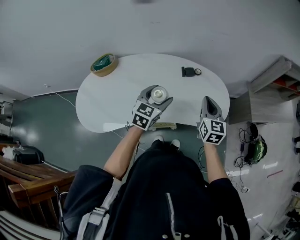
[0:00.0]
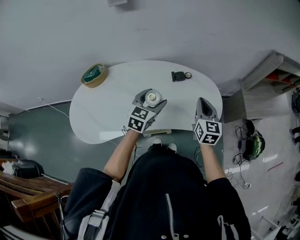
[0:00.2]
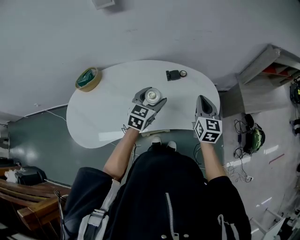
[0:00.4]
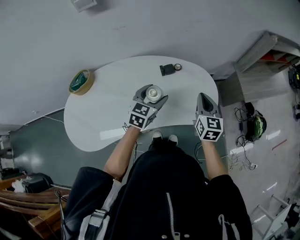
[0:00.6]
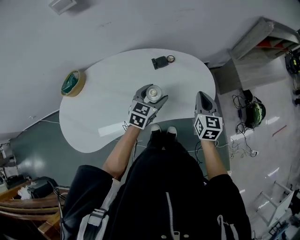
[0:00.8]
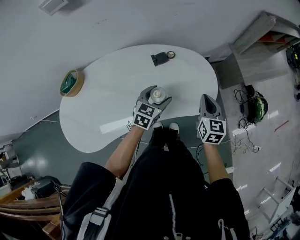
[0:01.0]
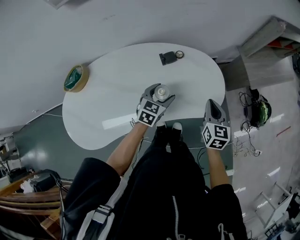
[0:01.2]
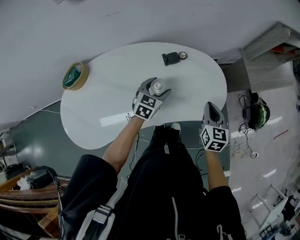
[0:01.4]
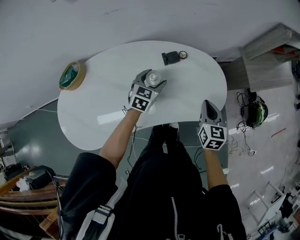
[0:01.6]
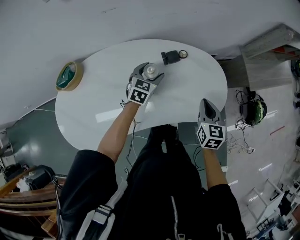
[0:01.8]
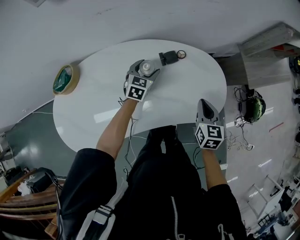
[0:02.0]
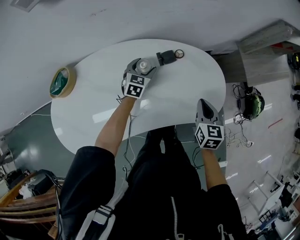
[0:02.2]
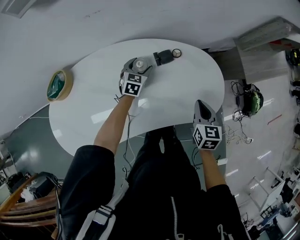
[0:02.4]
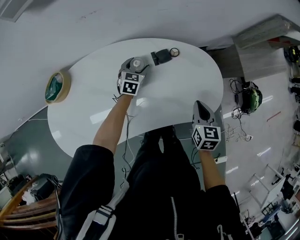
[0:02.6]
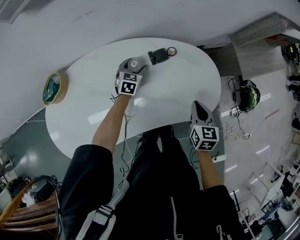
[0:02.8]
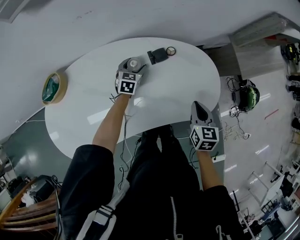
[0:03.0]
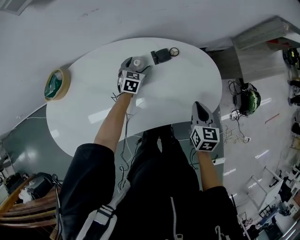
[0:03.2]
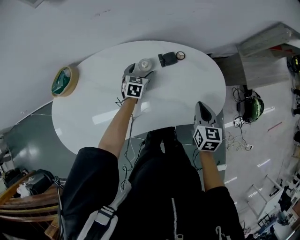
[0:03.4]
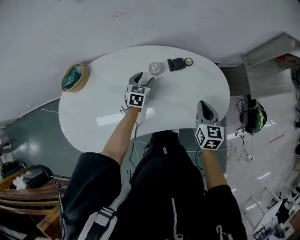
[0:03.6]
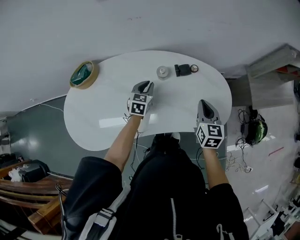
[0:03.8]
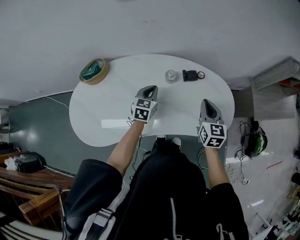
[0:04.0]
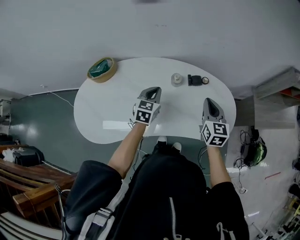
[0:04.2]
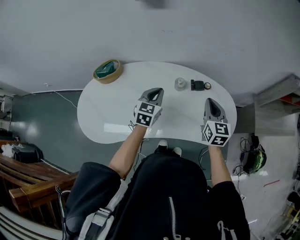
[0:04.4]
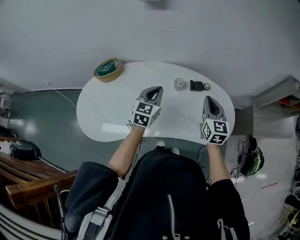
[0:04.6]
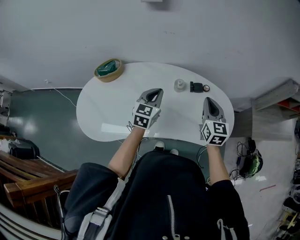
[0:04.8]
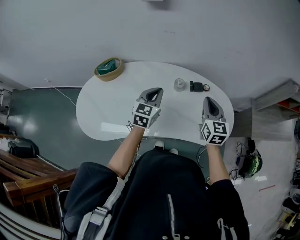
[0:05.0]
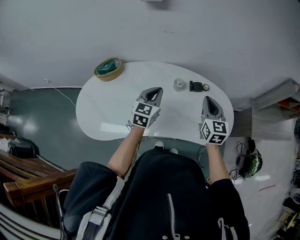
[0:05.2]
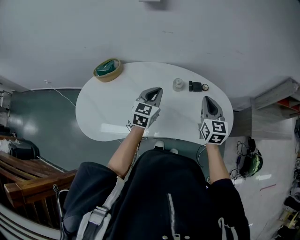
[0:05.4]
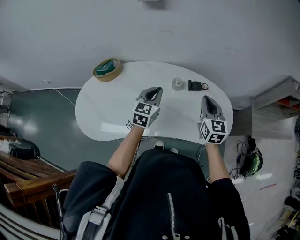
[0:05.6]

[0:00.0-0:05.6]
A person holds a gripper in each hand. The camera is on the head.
0:00.0 to 0:01.4: The left gripper heads downward and forward, covering about 20 cm. The right gripper goes some 10 cm downward and to the right.
0:01.4 to 0:02.8: The left gripper heads forward, downward and to the left, covering some 20 cm. Meanwhile the right gripper shifts by about 5 cm.
0:02.8 to 0:04.2: The left gripper travels upward and backward by about 25 cm, and closes its fingers. Meanwhile the right gripper moves upward and to the left, roughly 15 cm, and swivels approximately 30 degrees.
0:04.2 to 0:05.6: The left gripper moves upward, some 5 cm.

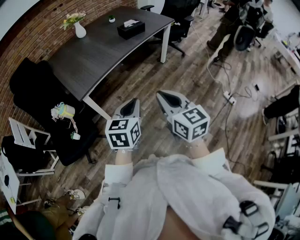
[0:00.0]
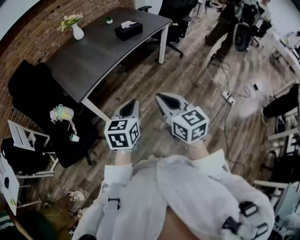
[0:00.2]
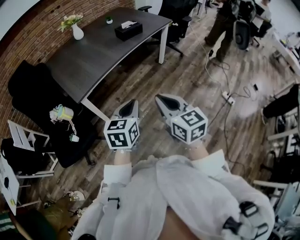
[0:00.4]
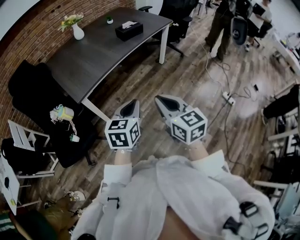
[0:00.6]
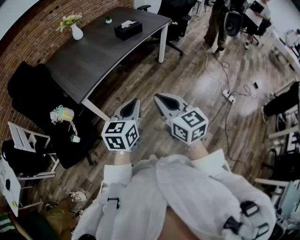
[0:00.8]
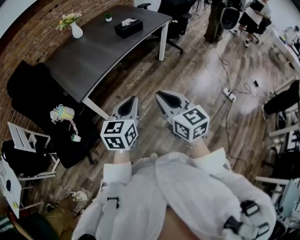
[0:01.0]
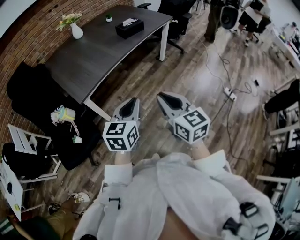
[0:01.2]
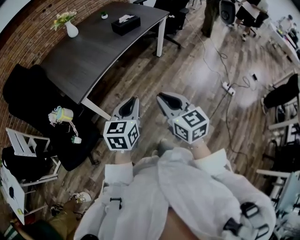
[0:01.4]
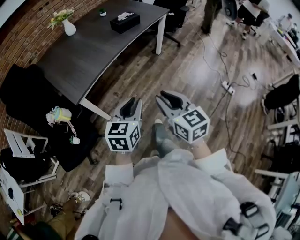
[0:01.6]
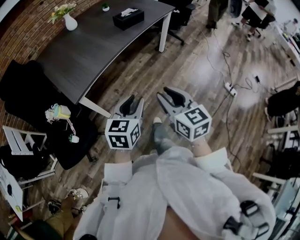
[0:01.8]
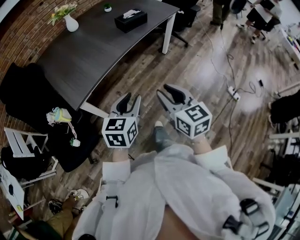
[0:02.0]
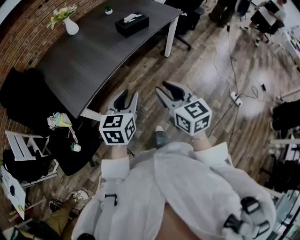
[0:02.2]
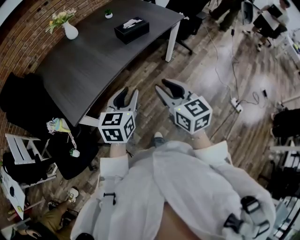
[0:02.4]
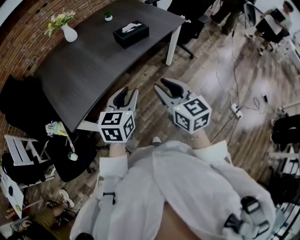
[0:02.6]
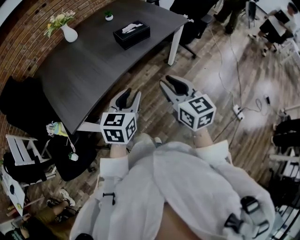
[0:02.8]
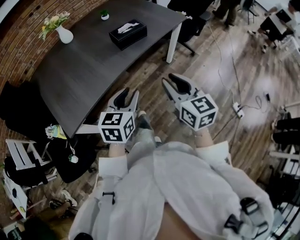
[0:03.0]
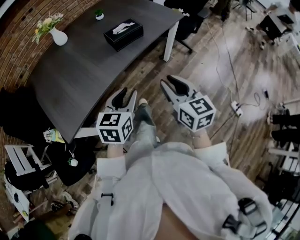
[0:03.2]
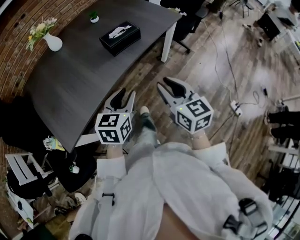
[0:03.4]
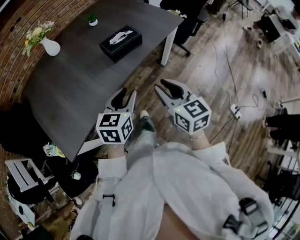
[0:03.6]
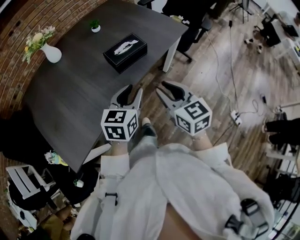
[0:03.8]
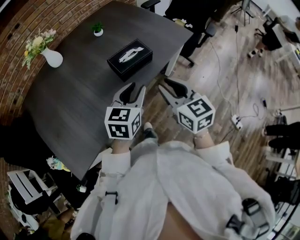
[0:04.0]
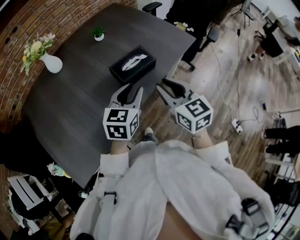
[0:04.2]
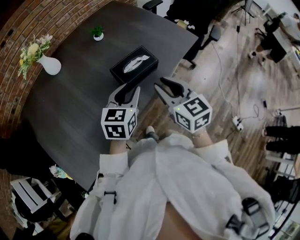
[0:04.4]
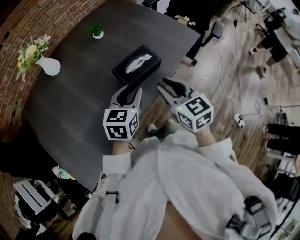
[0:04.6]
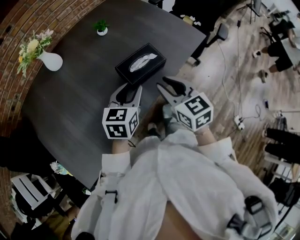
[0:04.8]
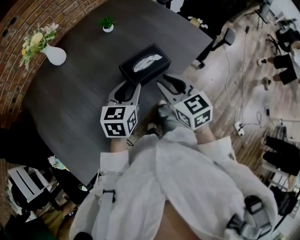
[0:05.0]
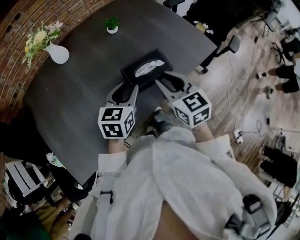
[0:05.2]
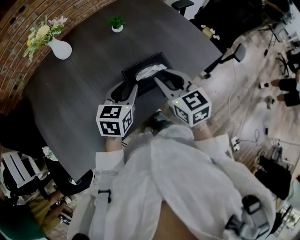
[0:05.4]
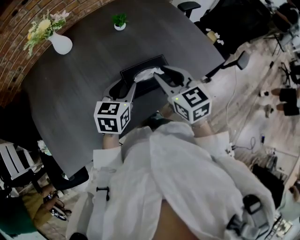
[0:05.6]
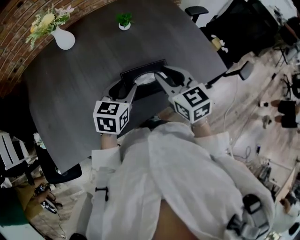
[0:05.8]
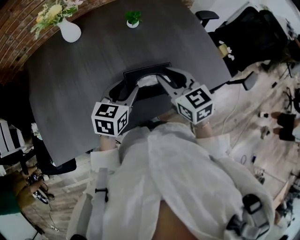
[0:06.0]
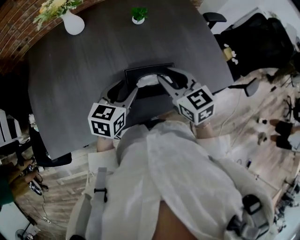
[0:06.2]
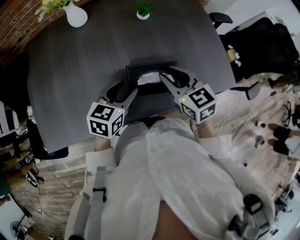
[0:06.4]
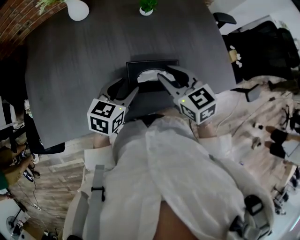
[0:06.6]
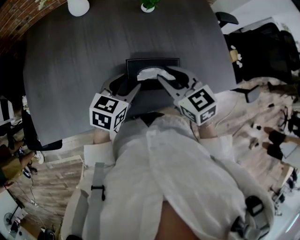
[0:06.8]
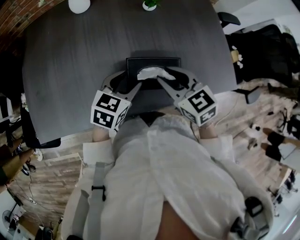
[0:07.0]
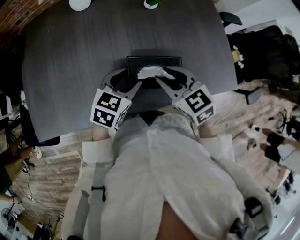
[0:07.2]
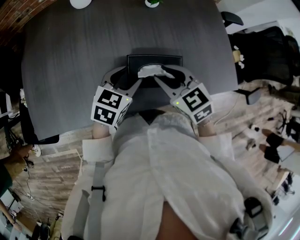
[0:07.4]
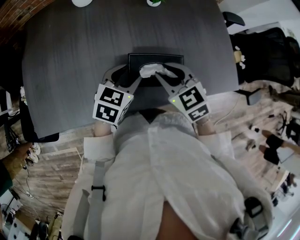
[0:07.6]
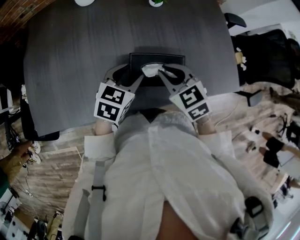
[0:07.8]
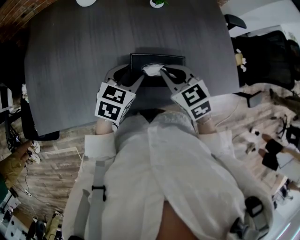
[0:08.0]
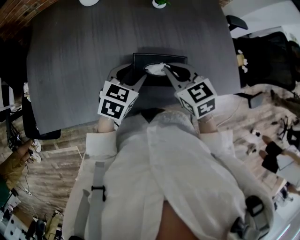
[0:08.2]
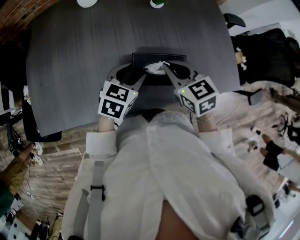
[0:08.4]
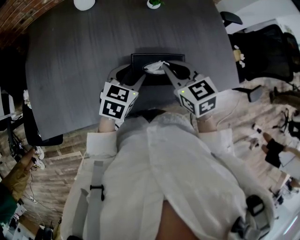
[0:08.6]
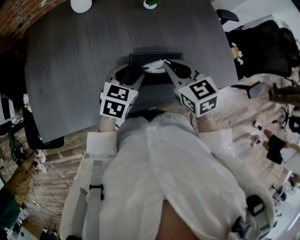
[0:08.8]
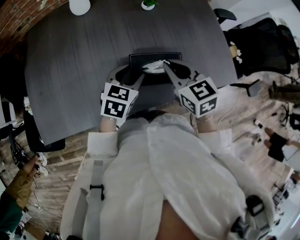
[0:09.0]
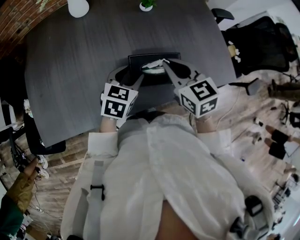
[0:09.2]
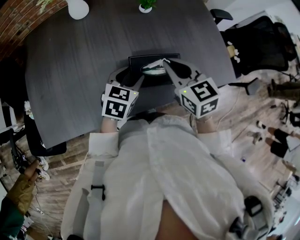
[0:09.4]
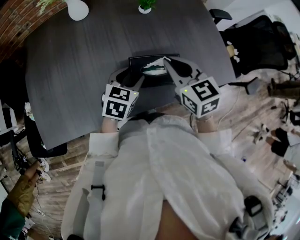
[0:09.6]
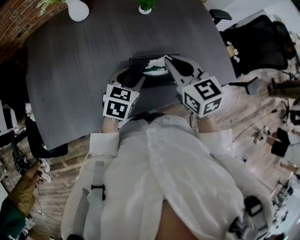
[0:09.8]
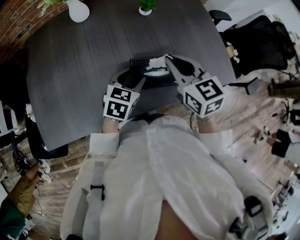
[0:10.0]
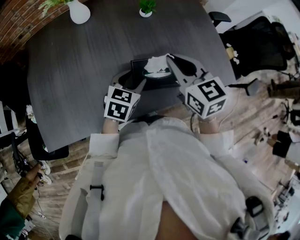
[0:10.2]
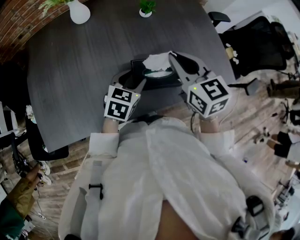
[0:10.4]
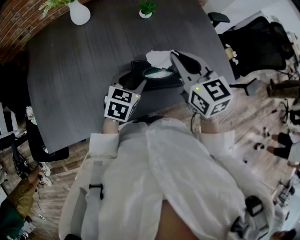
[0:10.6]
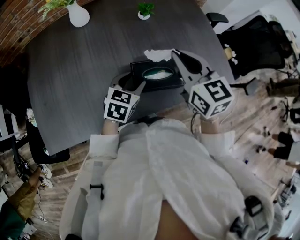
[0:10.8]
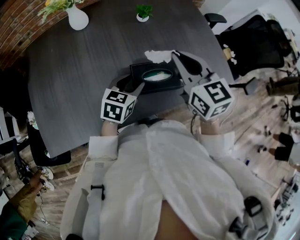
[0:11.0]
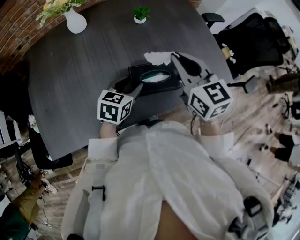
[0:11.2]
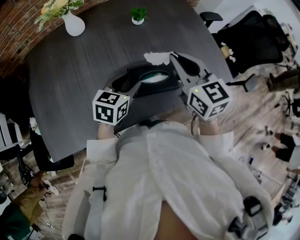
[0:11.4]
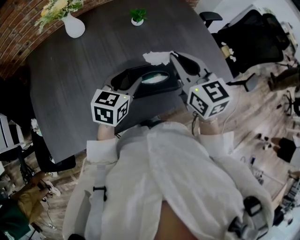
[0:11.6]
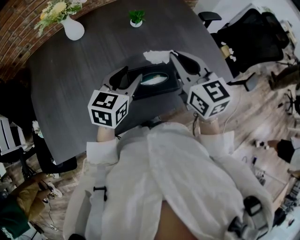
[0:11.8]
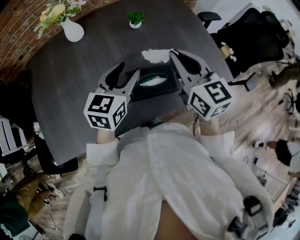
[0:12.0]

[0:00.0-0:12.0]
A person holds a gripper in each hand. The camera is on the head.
0:00.0 to 0:01.6: The right gripper shifts approximately 5 cm downward. The left gripper moves about 5 cm.
0:01.6 to 0:03.0: Both grippers travel together forward, roughly 35 cm.
0:03.0 to 0:04.4: The grippers both shift forward by approximately 35 cm.
0:04.4 to 0:06.0: The left gripper goes approximately 10 cm forward, and turns by some 20 degrees. Meanwhile the right gripper travels forward by about 20 cm, and changes its angle by roughly 30 degrees.
0:06.0 to 0:07.6: The right gripper moves downward, approximately 5 cm, and swivels about 20 degrees.
0:07.6 to 0:09.0: The right gripper closes.
0:09.0 to 0:10.4: The right gripper travels upward by roughly 10 cm.
0:10.4 to 0:12.0: The left gripper moves upward, some 15 cm, and turns by approximately 20 degrees, while the right gripper goes roughly 5 cm upward.

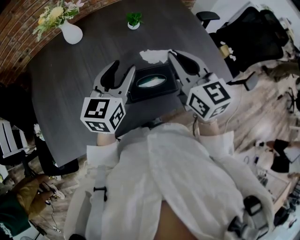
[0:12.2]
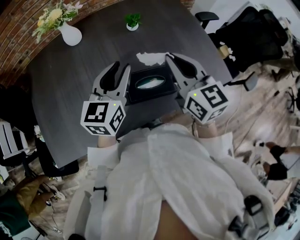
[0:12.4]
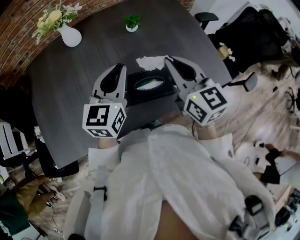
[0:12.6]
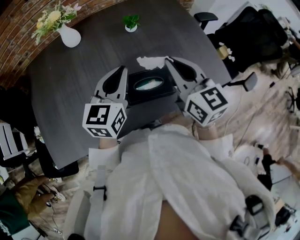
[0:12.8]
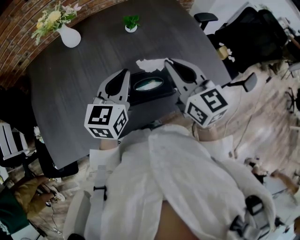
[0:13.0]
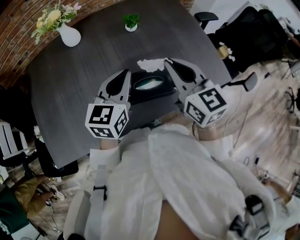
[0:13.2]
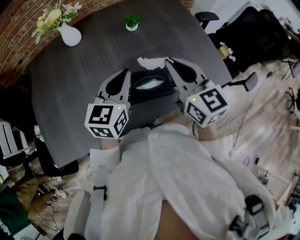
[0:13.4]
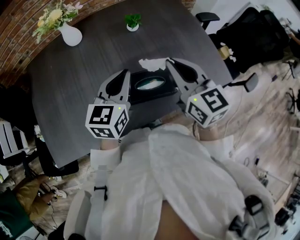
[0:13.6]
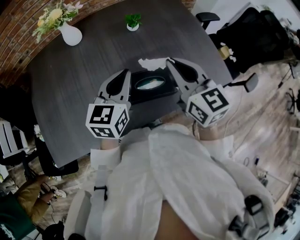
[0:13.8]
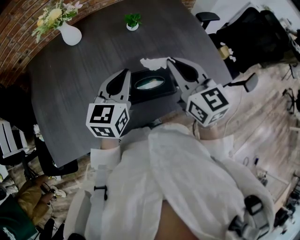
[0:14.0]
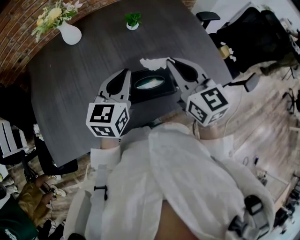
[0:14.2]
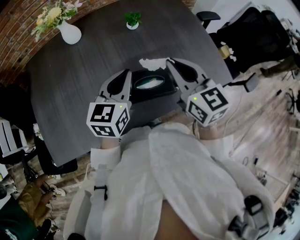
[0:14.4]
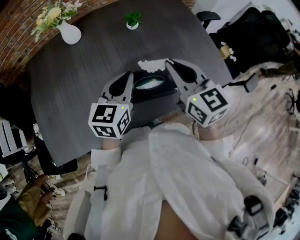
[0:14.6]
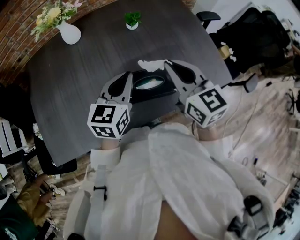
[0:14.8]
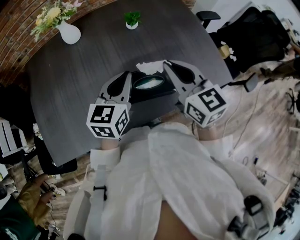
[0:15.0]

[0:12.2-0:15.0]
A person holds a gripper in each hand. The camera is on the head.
0:12.2 to 0:13.6: The left gripper closes its fingers.
0:13.6 to 0:15.0: There are only small adjustments of the grippers.

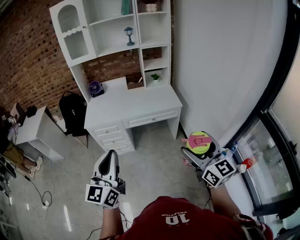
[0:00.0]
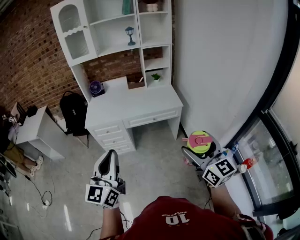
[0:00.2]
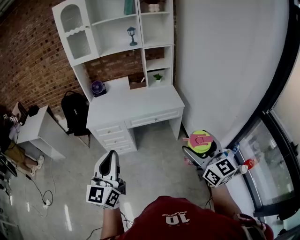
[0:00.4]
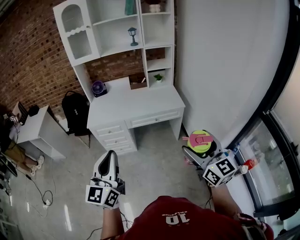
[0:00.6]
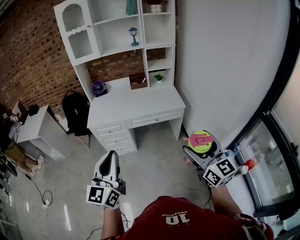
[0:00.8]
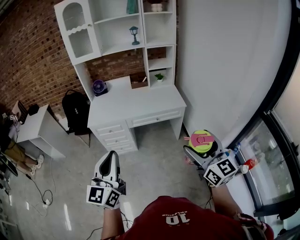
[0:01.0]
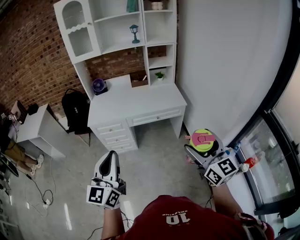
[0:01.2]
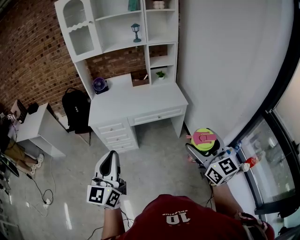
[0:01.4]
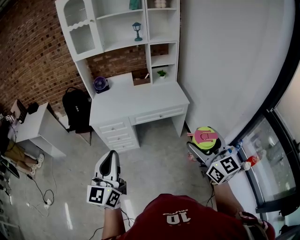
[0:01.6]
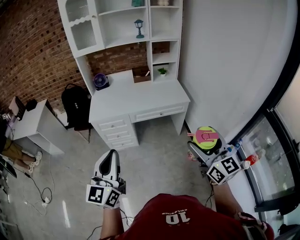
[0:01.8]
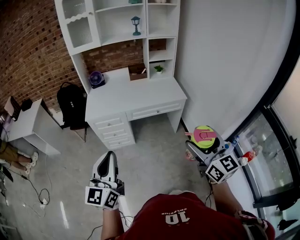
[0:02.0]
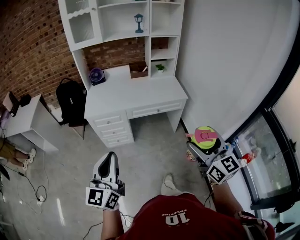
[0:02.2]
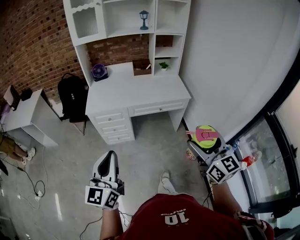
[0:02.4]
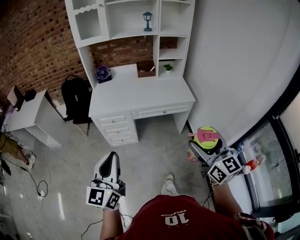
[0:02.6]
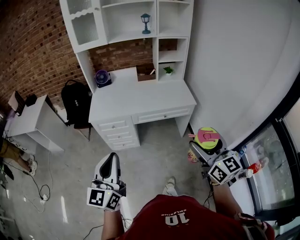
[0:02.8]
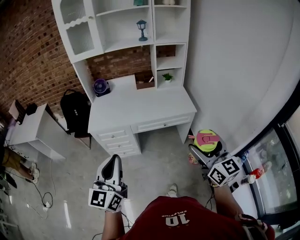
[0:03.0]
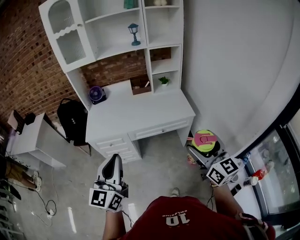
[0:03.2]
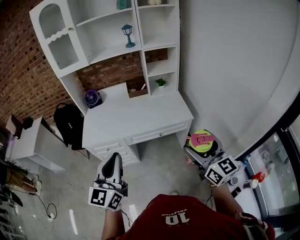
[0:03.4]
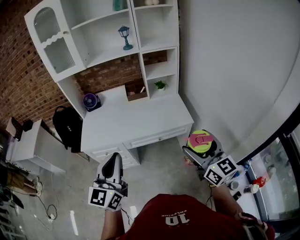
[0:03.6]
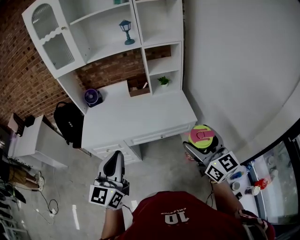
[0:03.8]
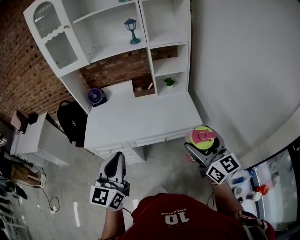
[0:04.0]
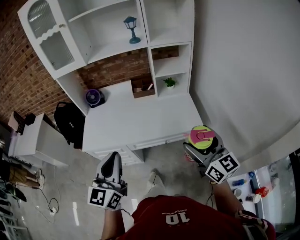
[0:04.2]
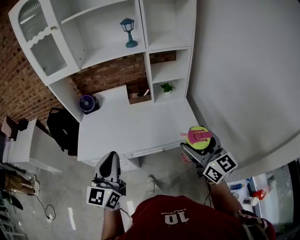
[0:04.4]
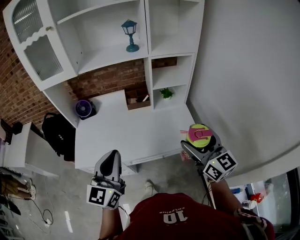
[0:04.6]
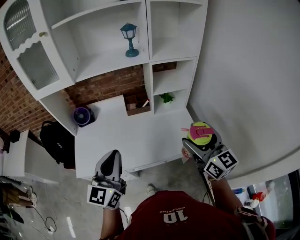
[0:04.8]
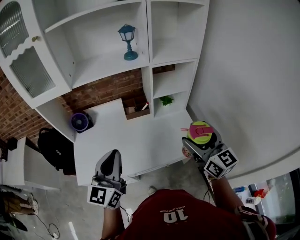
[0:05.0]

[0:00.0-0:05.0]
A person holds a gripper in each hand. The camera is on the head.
0:00.0 to 0:01.6: The right gripper moves approximately 5 cm; the left gripper moves to the left, about 5 cm.
0:01.6 to 0:03.4: The grippers both shift forward by roughly 20 cm.
0:03.4 to 0:05.0: The grippers both shift forward by about 35 cm.
